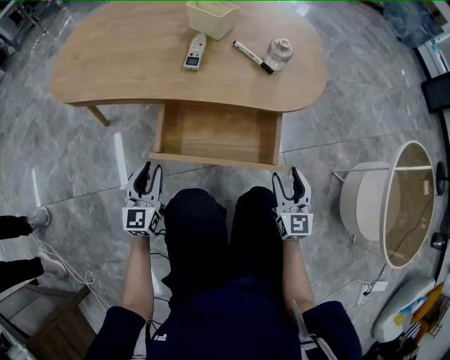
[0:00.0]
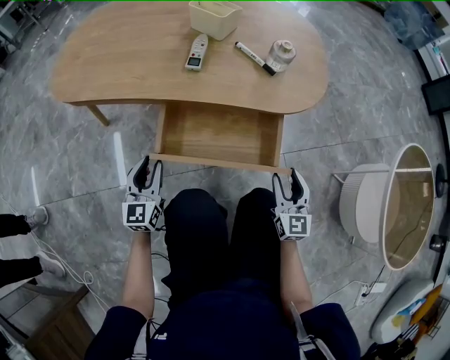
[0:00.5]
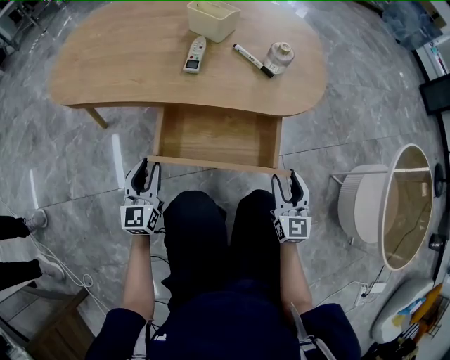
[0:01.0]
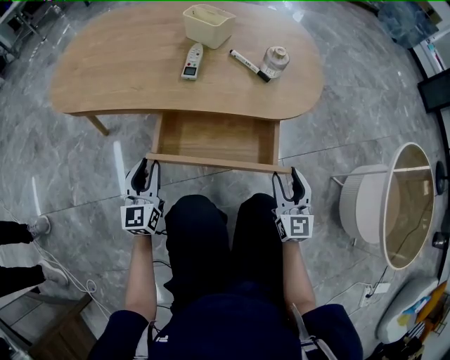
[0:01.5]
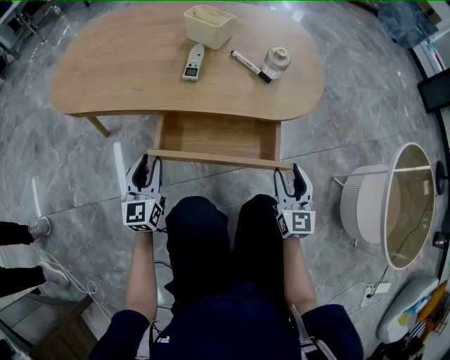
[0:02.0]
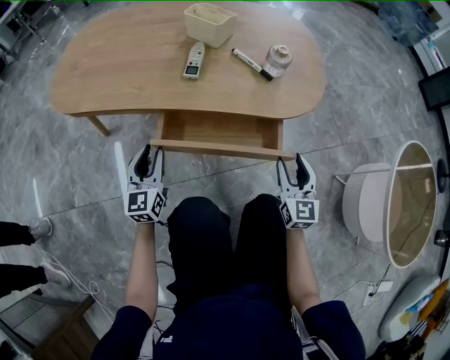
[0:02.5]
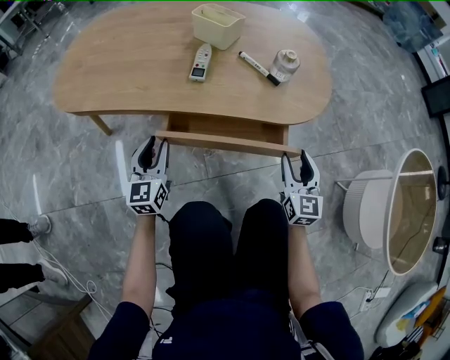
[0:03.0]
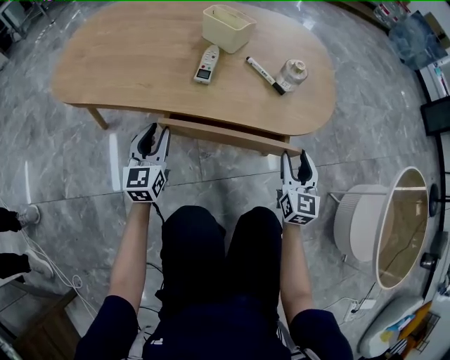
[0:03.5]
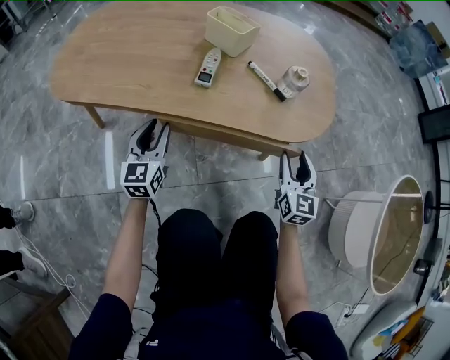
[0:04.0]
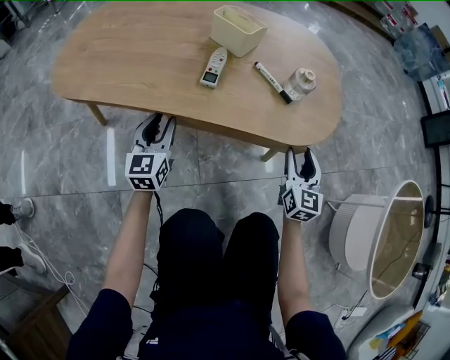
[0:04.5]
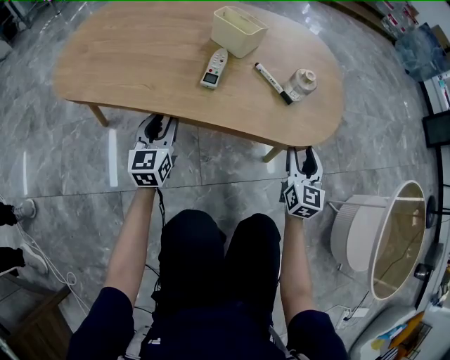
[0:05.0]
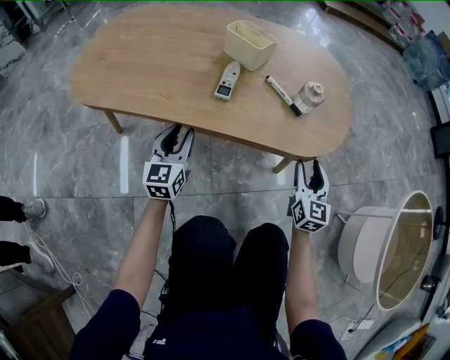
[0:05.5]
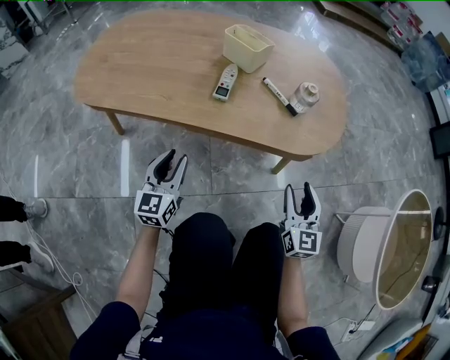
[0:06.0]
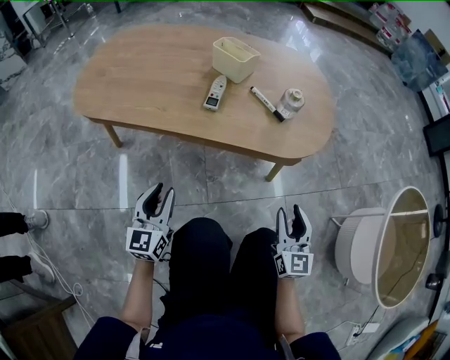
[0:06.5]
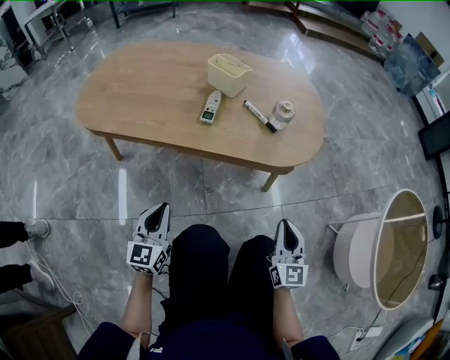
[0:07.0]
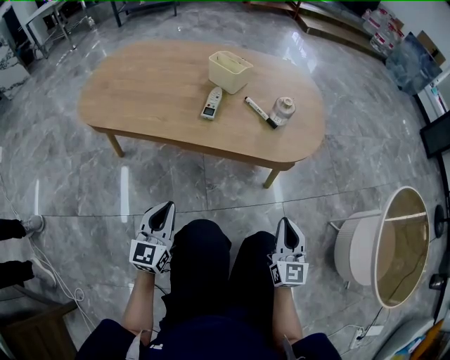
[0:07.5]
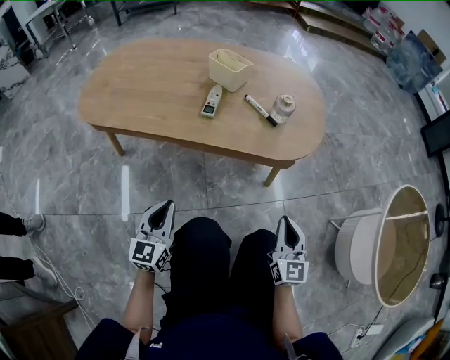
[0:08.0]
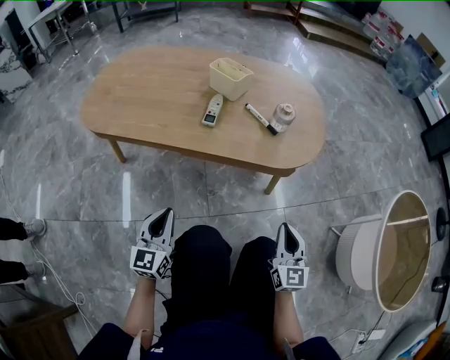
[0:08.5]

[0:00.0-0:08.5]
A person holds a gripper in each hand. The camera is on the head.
0:00.0 to 0:02.0: The left gripper heads forward, covering approximately 5 cm.
0:02.0 to 0:04.0: Both grippers move forward, roughly 10 cm.
0:04.0 to 0:06.5: Both grippers move backward, about 15 cm.
0:06.5 to 0:08.5: The left gripper closes up. The right gripper closes.

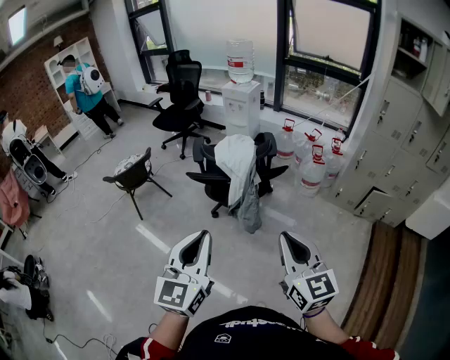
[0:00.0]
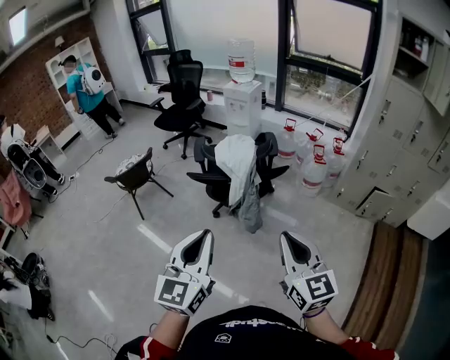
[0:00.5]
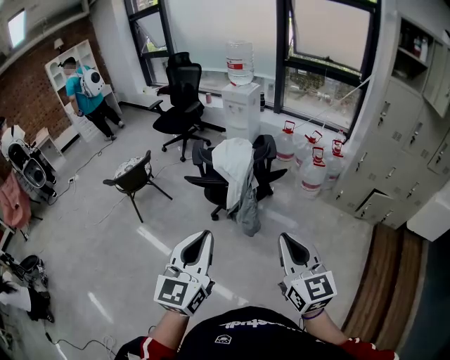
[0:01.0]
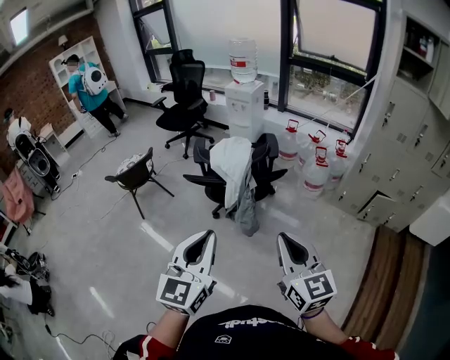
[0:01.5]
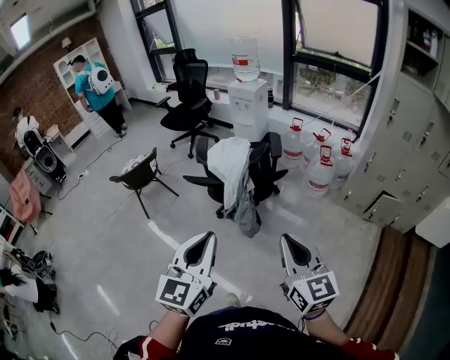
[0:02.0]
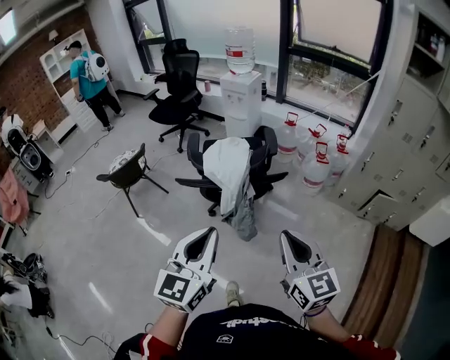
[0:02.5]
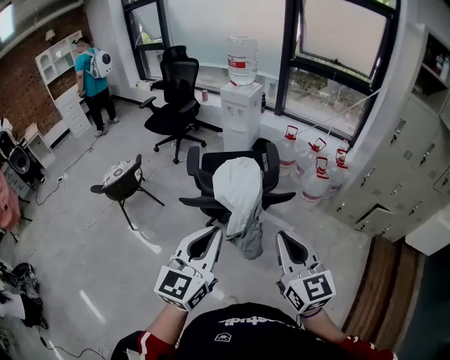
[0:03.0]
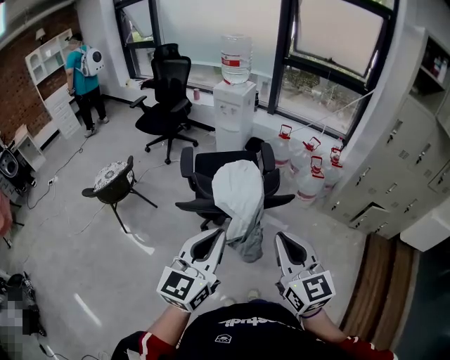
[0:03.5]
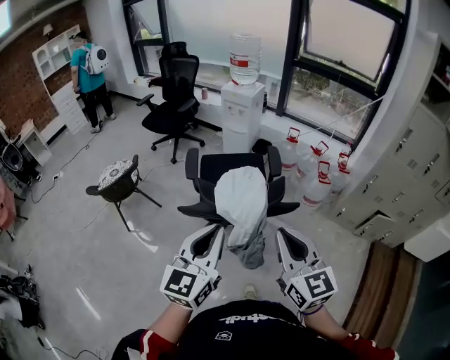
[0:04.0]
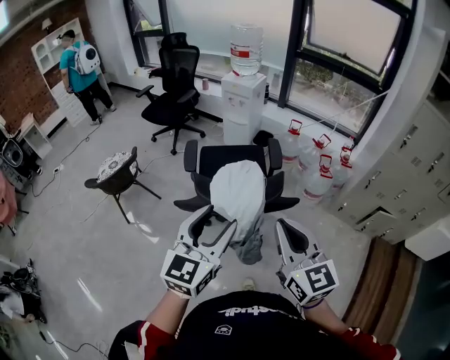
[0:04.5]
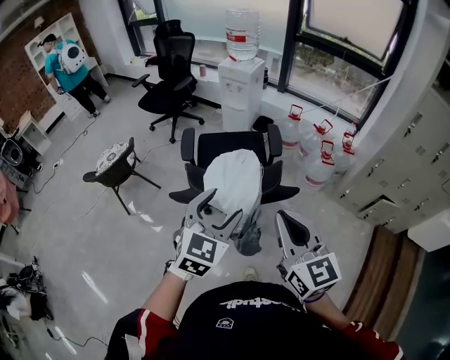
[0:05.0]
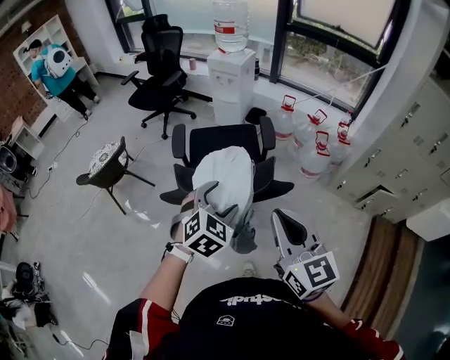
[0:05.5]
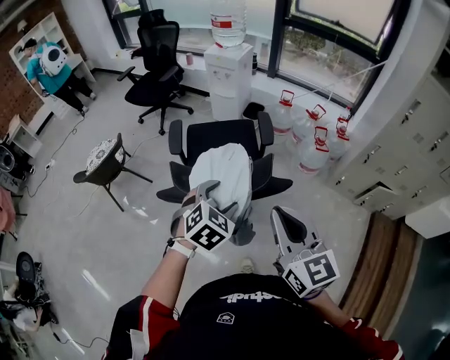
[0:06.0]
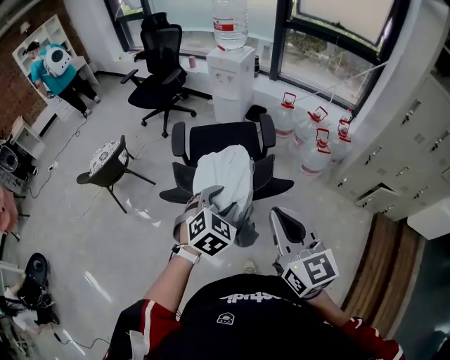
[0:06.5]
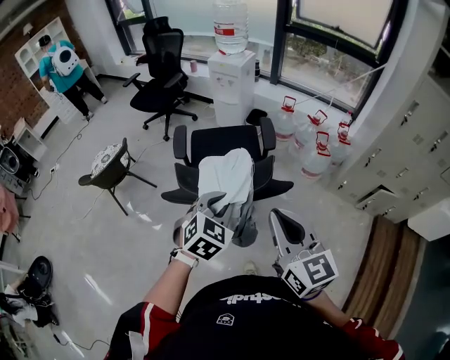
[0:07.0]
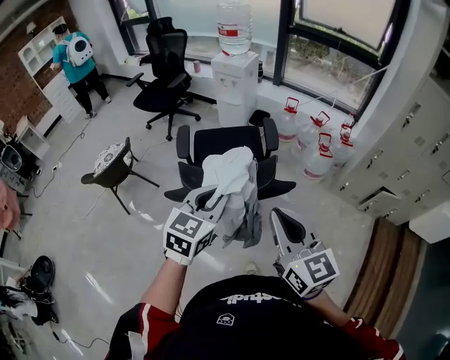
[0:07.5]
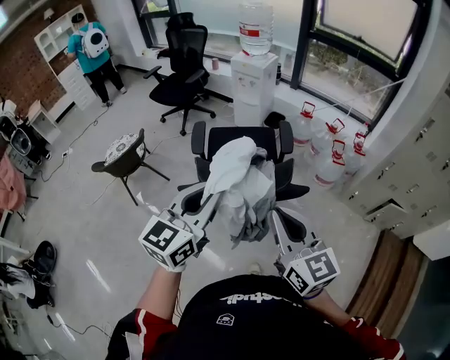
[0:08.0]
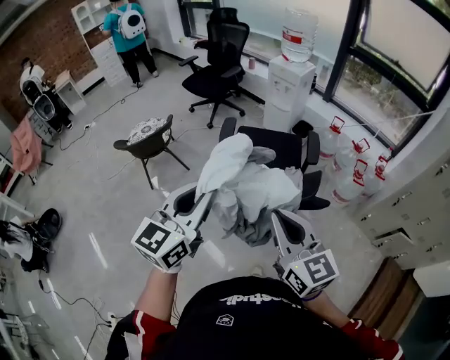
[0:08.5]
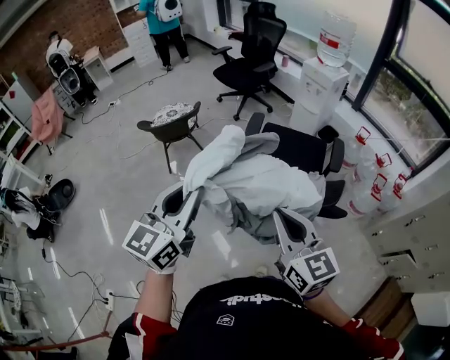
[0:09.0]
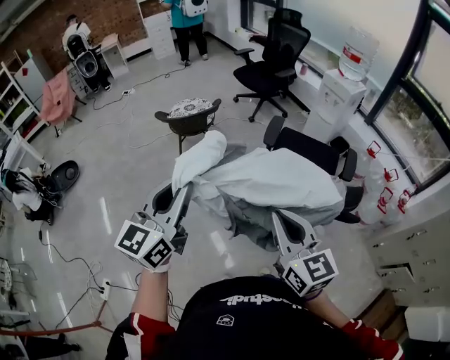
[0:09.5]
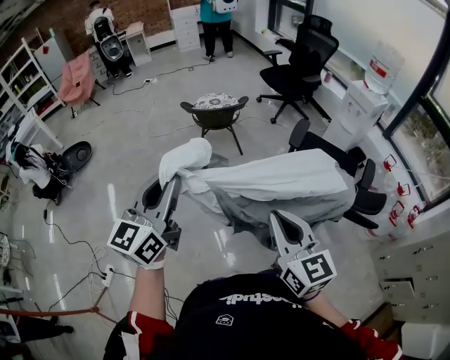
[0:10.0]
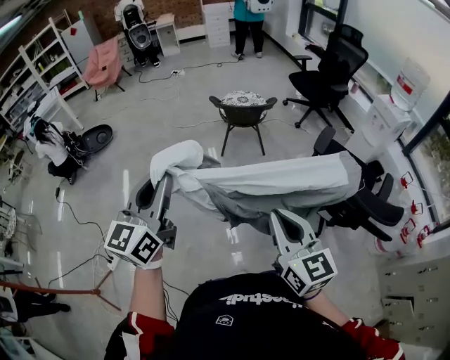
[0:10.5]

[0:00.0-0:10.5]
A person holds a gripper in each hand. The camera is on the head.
0:00.0 to 0:02.0: The two grippers go about 10 cm to the right.
0:02.0 to 0:04.0: The right gripper goes about 30 cm forward and to the left. The left gripper heads forward, covering roughly 25 cm.
0:04.0 to 0:06.5: The left gripper moves downward, forward and to the right, approximately 20 cm, points its fingers some 40 degrees further downward, and opens up. The right gripper moves forward, about 5 cm.
0:06.5 to 0:08.5: The right gripper moves to the left, about 10 cm. Meanwhile the left gripper heads upward, to the left and backward, covering approximately 25 cm, tilts its fingers some 40 degrees upward, and closes.
0:08.5 to 0:10.5: The right gripper ends up some 35 cm from where it was, and changes its angle by roughly 30 degrees. The left gripper shifts by roughly 50 cm, and turns by approximately 50 degrees.

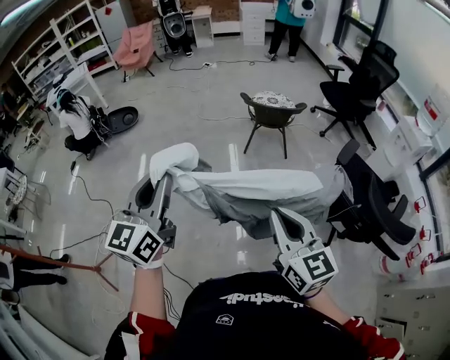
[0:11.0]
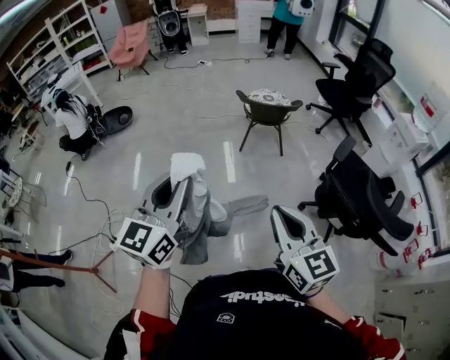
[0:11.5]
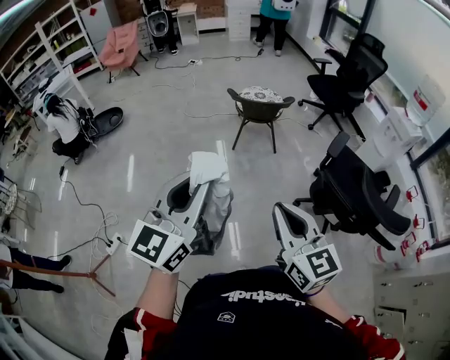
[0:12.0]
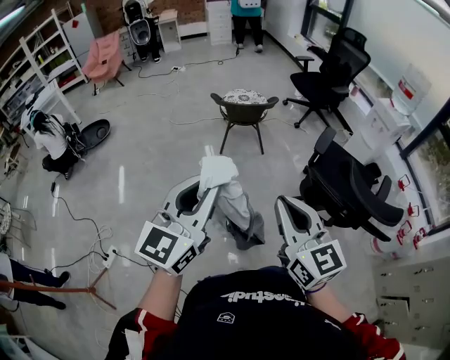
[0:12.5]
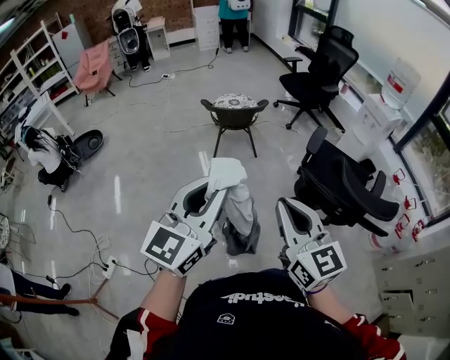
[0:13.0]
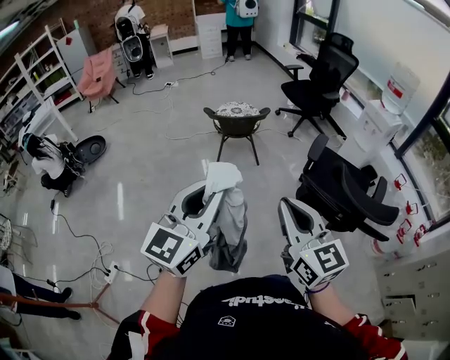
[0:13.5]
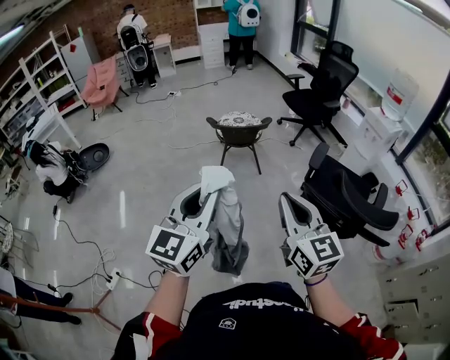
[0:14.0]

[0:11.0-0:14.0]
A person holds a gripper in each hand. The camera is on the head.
0:11.0 to 0:12.5: The right gripper moves some 5 cm. The left gripper moves to the right, roughly 15 cm, and rotates some 20 degrees.
0:12.5 to 0:14.0: The grippers move only a little.

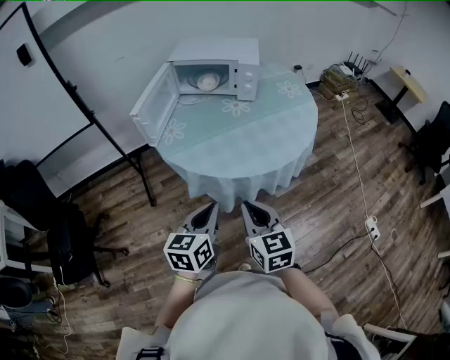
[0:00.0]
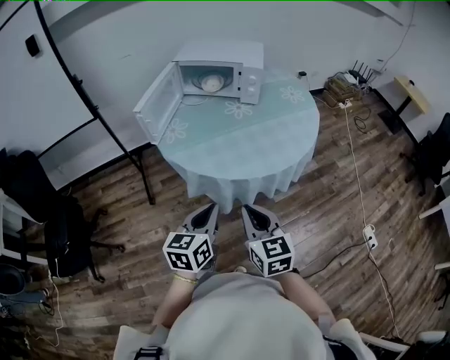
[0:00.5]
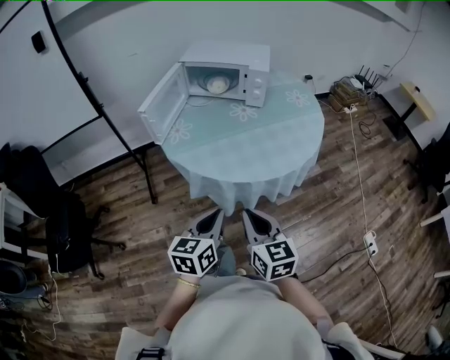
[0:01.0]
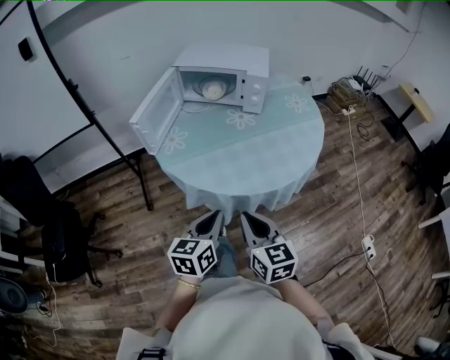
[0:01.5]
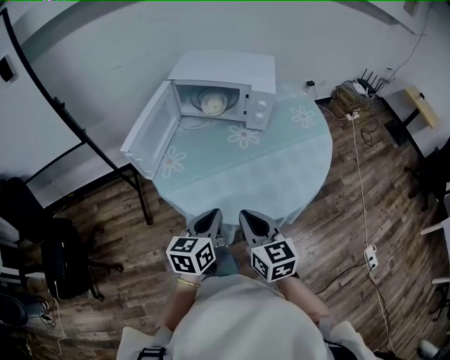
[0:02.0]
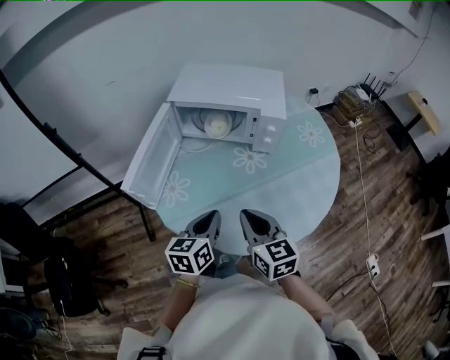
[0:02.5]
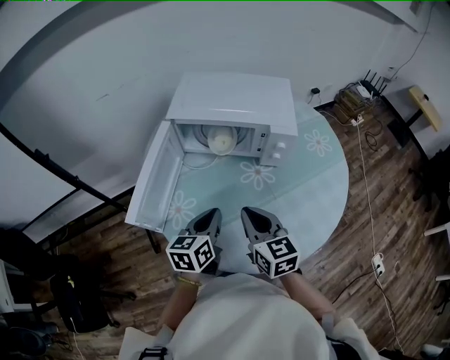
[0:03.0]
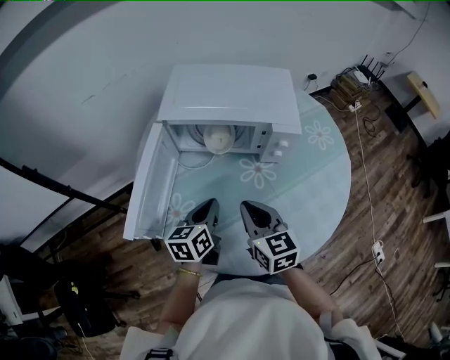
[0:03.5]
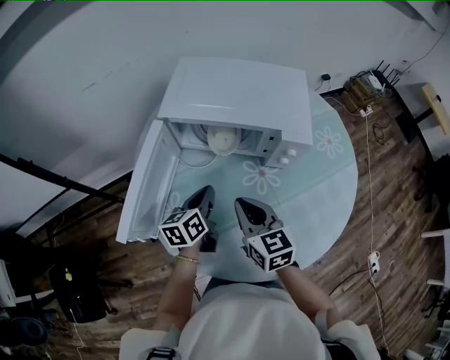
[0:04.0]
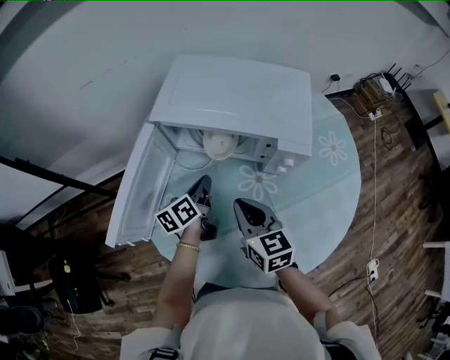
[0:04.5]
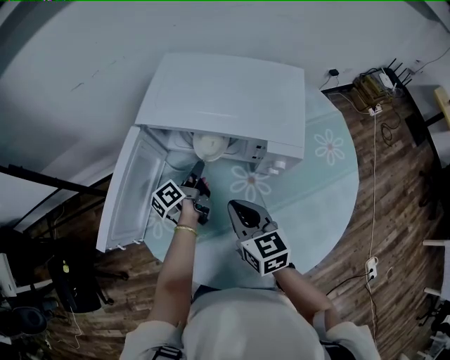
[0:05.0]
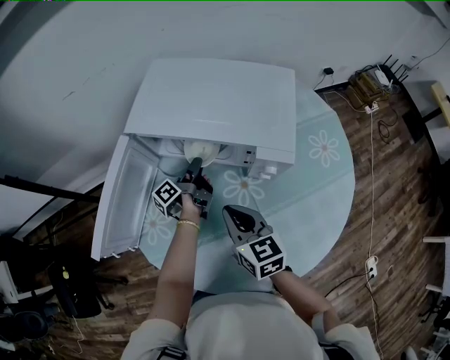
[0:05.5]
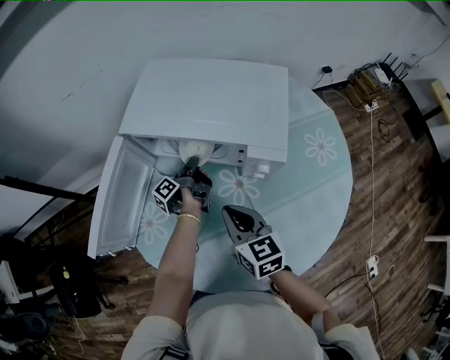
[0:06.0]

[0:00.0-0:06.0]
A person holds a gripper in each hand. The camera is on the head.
0:00.0 to 0:02.0: The two grippers go approximately 20 cm forward.
0:02.0 to 0:04.0: The two grippers go approximately 35 cm forward.
0:04.0 to 0:06.0: The left gripper shifts approximately 20 cm forward, downward and to the right, and rotates around the line of its fingers by some 60 degrees, counterclockwise from behind. The right gripper goes about 5 cm to the right.
